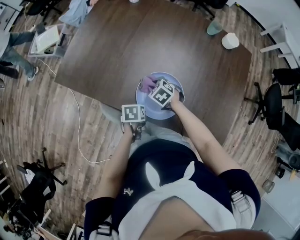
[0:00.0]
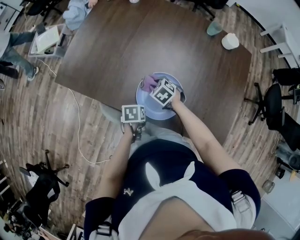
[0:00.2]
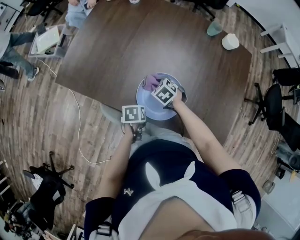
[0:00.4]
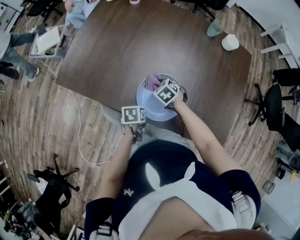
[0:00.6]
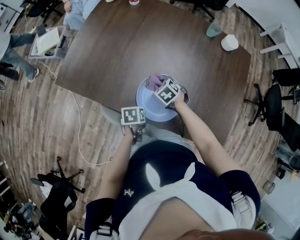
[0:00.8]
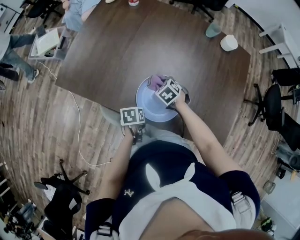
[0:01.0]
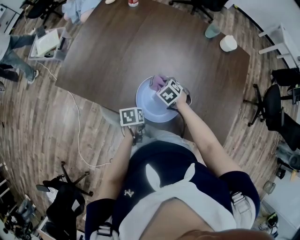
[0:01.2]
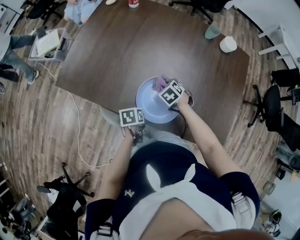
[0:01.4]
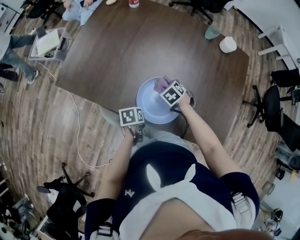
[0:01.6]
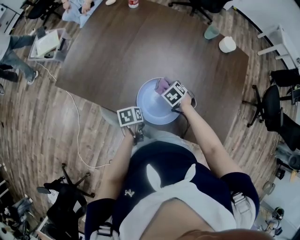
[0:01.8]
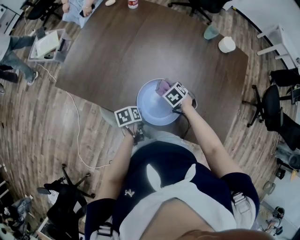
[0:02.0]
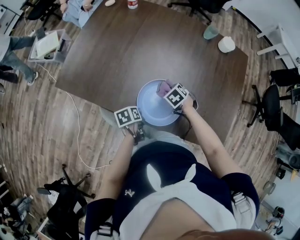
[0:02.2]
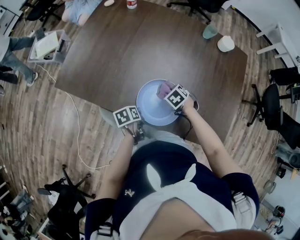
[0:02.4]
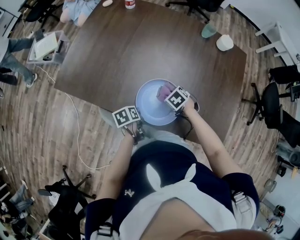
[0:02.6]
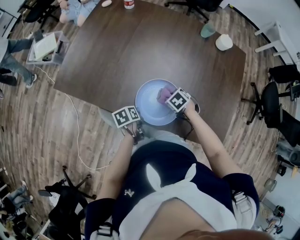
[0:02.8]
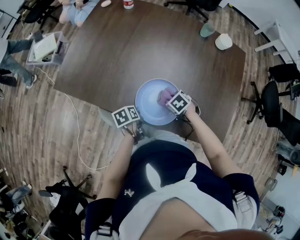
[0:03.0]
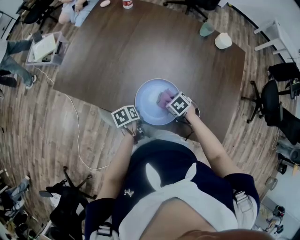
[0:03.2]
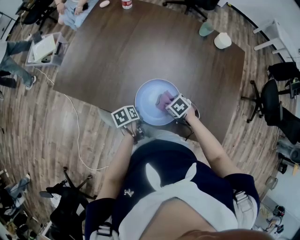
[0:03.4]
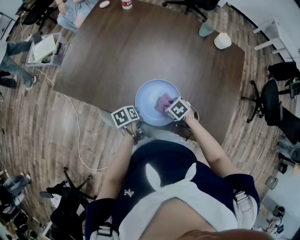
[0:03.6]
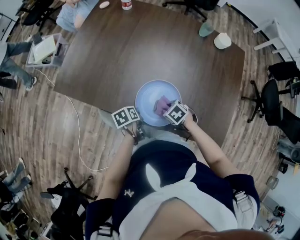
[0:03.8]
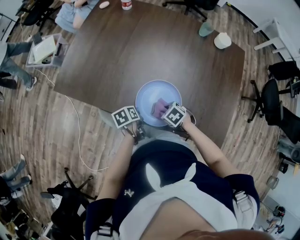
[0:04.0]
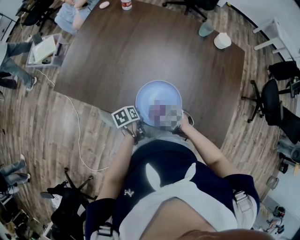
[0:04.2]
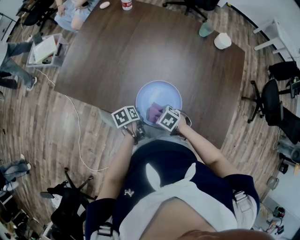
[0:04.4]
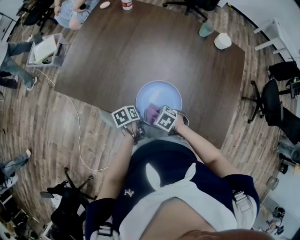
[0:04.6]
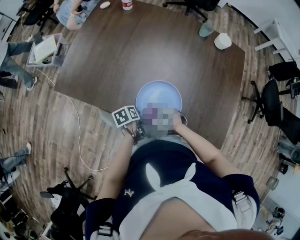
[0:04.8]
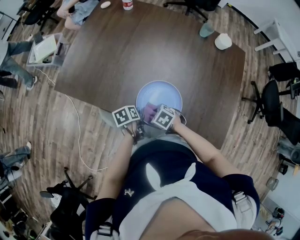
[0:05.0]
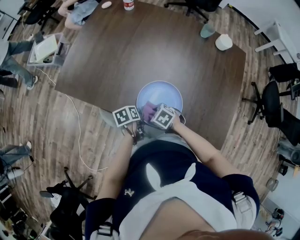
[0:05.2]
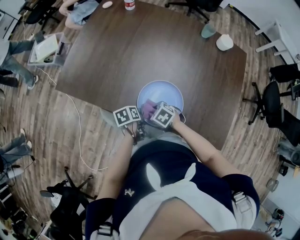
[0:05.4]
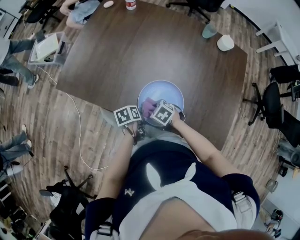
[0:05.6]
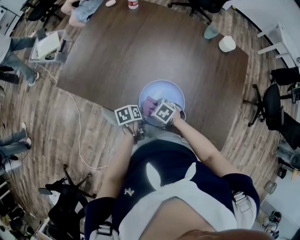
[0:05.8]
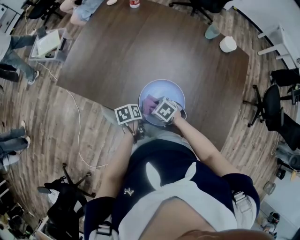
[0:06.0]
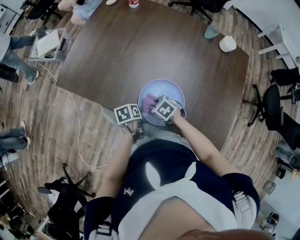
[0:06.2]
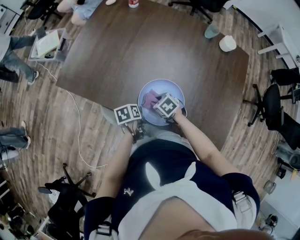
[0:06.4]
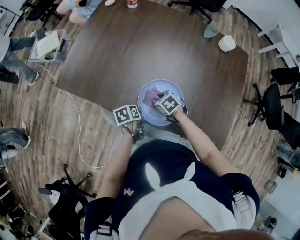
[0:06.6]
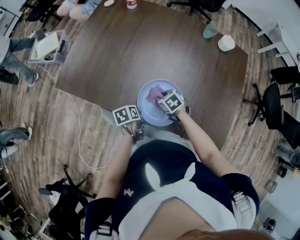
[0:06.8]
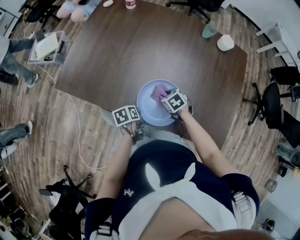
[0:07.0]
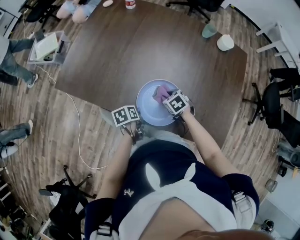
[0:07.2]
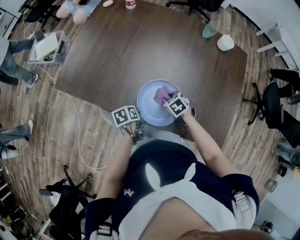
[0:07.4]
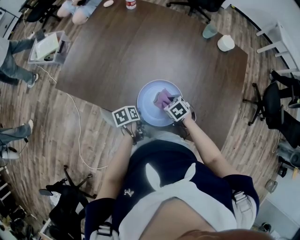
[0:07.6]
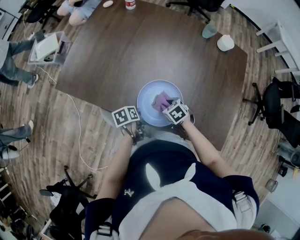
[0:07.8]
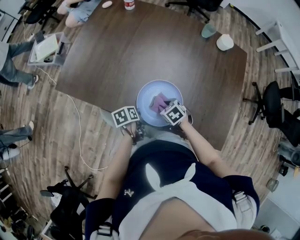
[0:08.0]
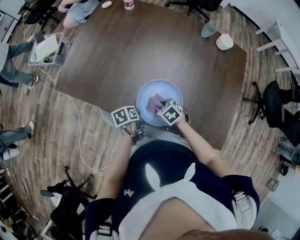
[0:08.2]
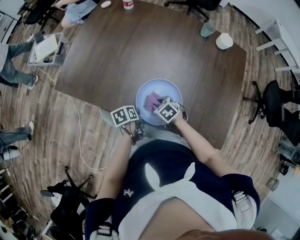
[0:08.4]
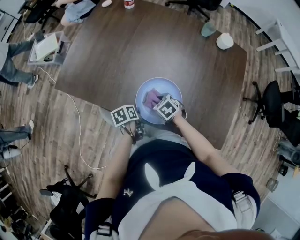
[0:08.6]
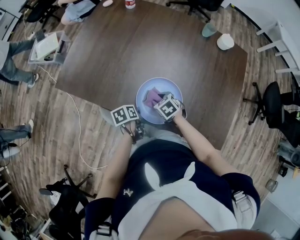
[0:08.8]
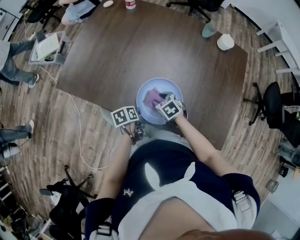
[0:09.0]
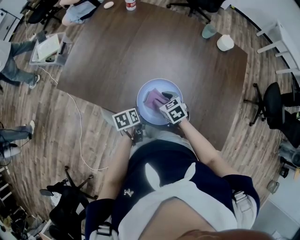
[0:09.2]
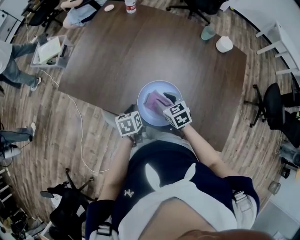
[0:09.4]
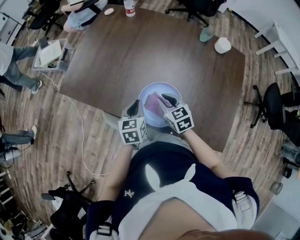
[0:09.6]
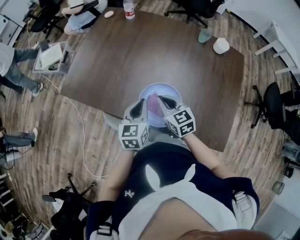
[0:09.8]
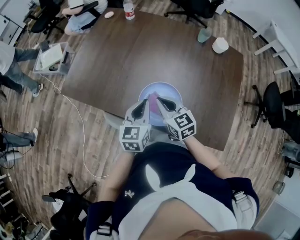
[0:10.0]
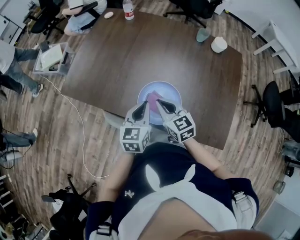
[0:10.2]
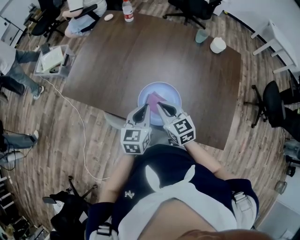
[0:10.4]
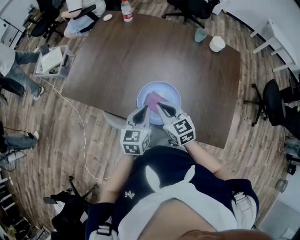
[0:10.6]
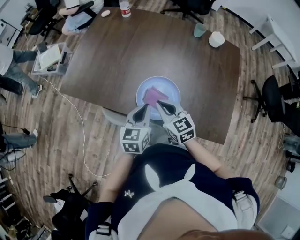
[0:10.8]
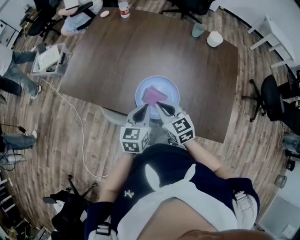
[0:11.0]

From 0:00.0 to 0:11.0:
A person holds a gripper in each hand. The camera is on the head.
From 0:00.0 to 0:01.6: The right gripper shifts roughly 10 cm to the right.
From 0:01.6 to 0:03.2: The right gripper ends up some 10 cm from where it was.
From 0:03.2 to 0:04.8: The right gripper moves roughly 10 cm.
From 0:04.8 to 0:06.2: The right gripper moves roughly 5 cm.
From 0:06.2 to 0:07.8: The right gripper is displaced to the right by approximately 5 cm.
From 0:07.8 to 0:09.4: Both grippers travel together upward, some 5 cm. The right gripper swivels roughly 20 degrees, while the left gripper rotates approximately 30 degrees.
From 0:09.4 to 0:11.0: The right gripper heads upward and backward, covering approximately 15 cm, and closes. Meanwhile the left gripper heads upward, backward and to the right, covering about 15 cm, and changes its angle by some 30 degrees.

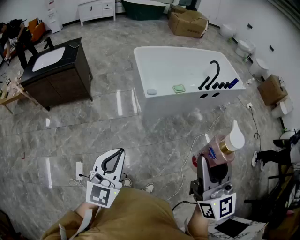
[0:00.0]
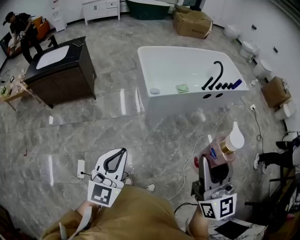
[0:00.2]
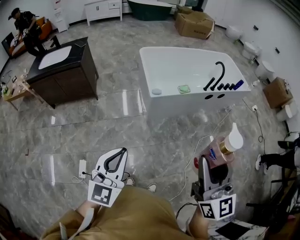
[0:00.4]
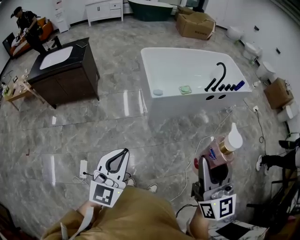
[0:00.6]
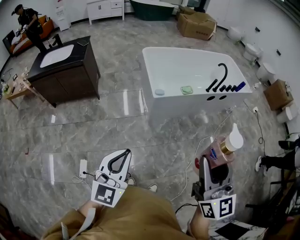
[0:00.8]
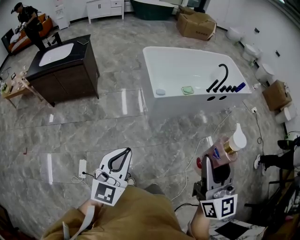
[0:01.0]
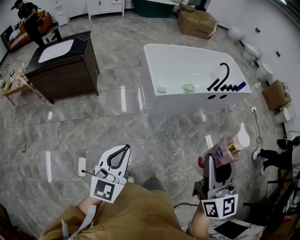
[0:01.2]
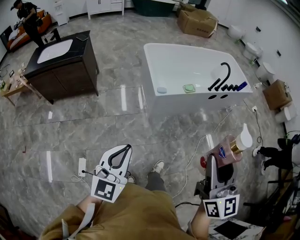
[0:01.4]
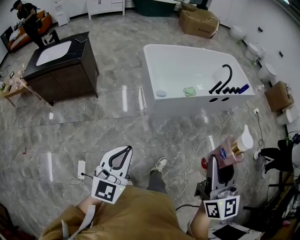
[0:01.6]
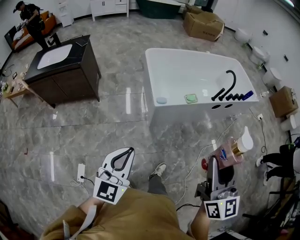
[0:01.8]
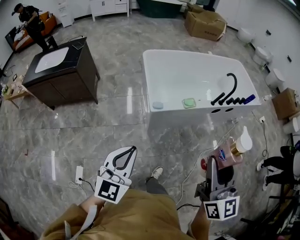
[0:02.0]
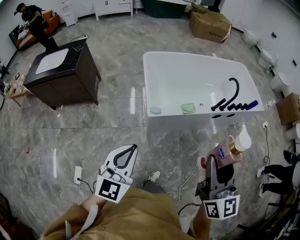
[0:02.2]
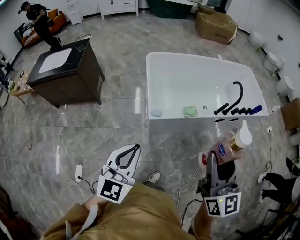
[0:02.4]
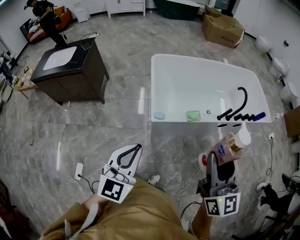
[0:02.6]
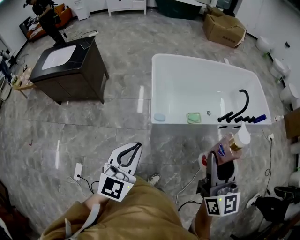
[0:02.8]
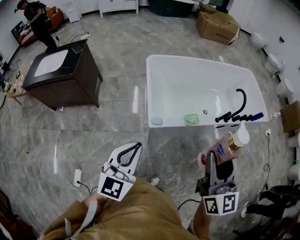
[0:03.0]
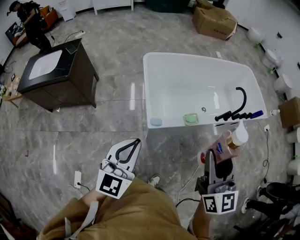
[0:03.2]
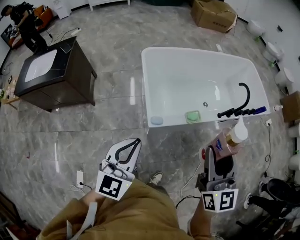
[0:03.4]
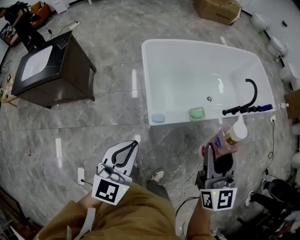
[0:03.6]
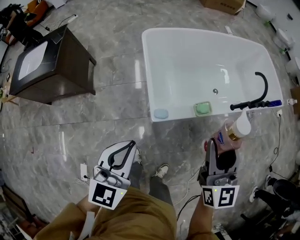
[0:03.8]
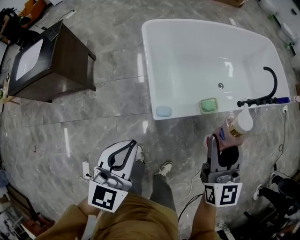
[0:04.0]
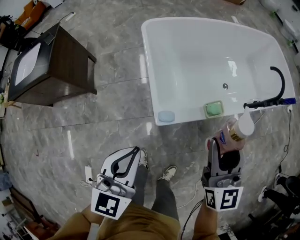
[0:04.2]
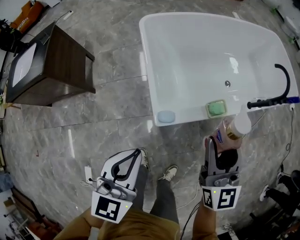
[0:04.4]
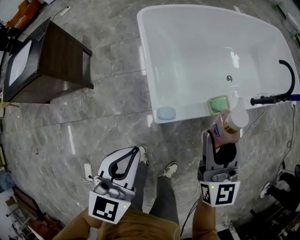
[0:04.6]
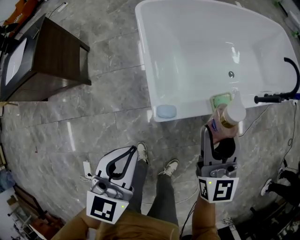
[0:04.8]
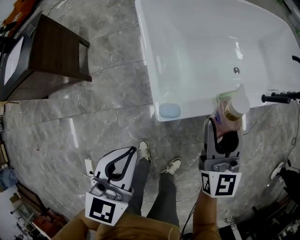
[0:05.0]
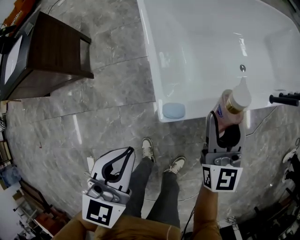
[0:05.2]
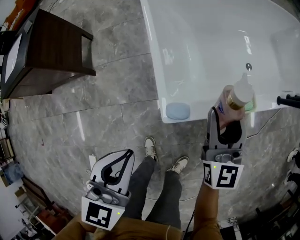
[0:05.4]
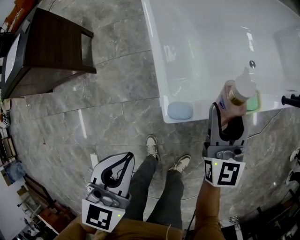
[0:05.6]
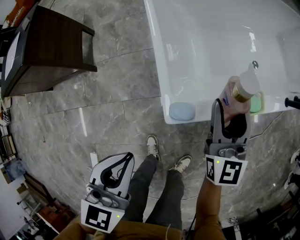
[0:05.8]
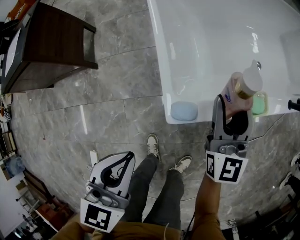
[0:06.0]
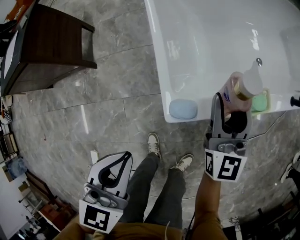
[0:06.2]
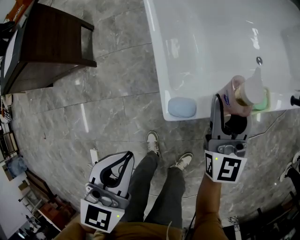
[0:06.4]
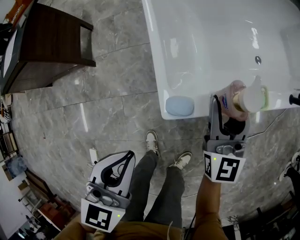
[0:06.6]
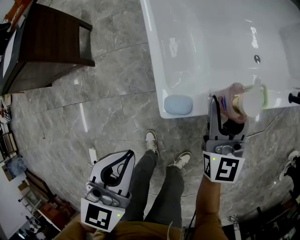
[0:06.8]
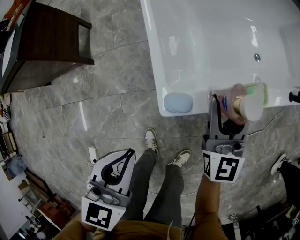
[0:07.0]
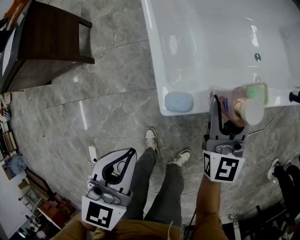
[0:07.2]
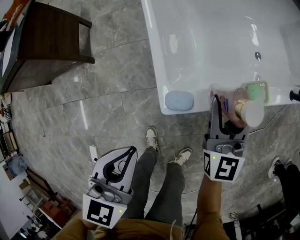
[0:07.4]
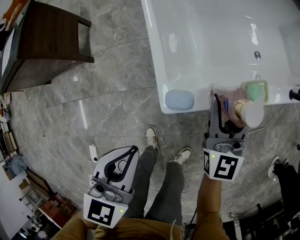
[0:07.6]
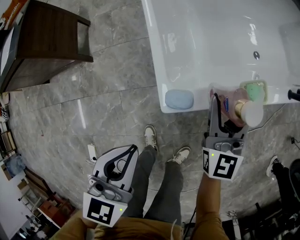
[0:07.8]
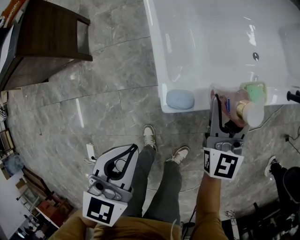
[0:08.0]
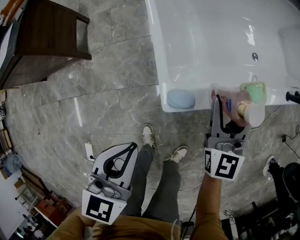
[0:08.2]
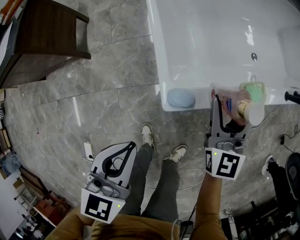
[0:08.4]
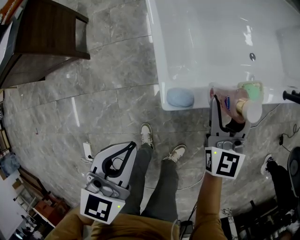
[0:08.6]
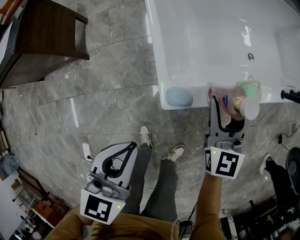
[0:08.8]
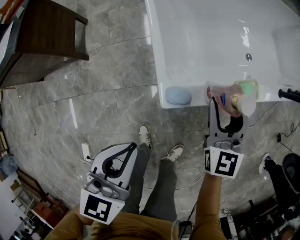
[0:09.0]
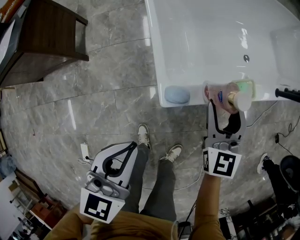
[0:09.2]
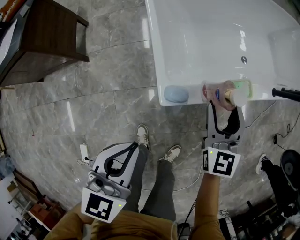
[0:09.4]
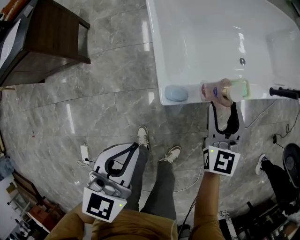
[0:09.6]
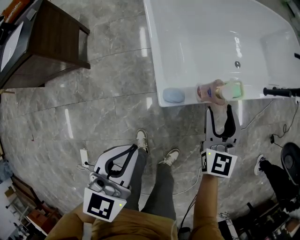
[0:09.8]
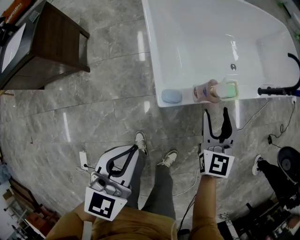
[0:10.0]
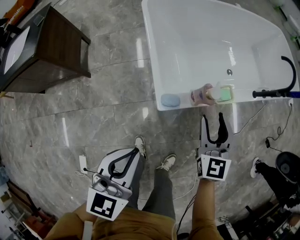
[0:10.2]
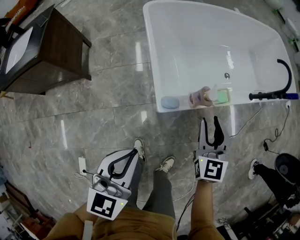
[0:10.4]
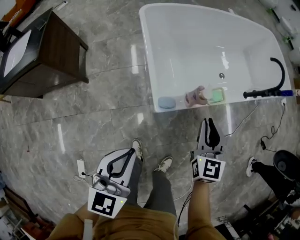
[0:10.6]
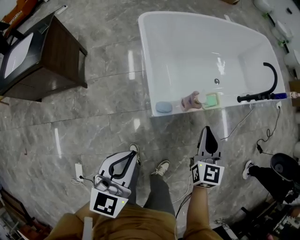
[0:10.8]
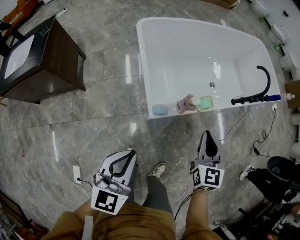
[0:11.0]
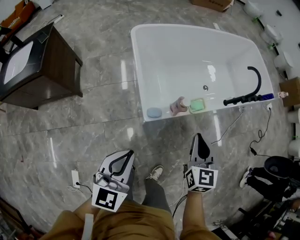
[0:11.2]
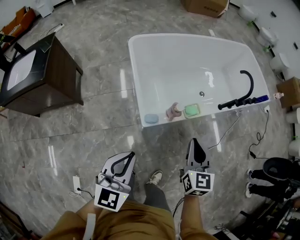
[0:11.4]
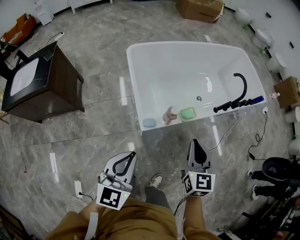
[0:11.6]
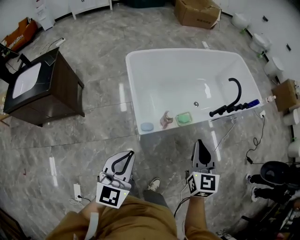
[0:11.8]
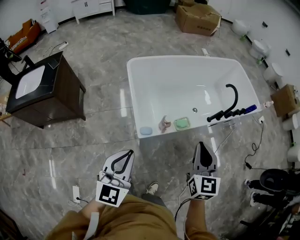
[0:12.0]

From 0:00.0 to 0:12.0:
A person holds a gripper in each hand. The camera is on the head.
From 0:00.0 to 0:01.6: Both grippers travel together forward, approximately 5 cm.
From 0:01.6 to 0:03.0: The grippers both shift forward by about 30 cm.
From 0:03.0 to 0:04.4: The two grippers go about 25 cm downward and forward.
From 0:04.4 to 0:06.0: The left gripper travels downward by approximately 15 cm. The right gripper is displaced downward and forward by about 25 cm.
From 0:06.0 to 0:09.0: The grippers stay close to where they were, moving slightly.
From 0:09.0 to 0:10.4: The two grippers go roughly 10 cm upward and backward. The right gripper closes.
From 0:10.4 to 0:12.0: The grippers both shift upward by roughly 20 cm. The right gripper closes its fingers.

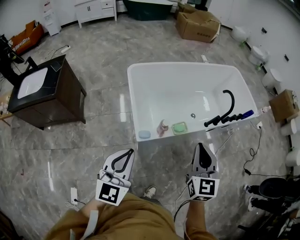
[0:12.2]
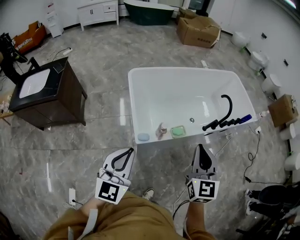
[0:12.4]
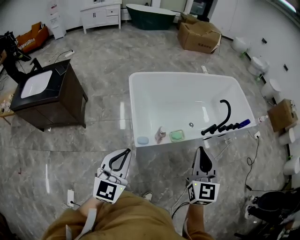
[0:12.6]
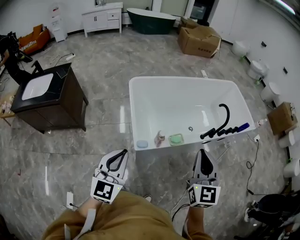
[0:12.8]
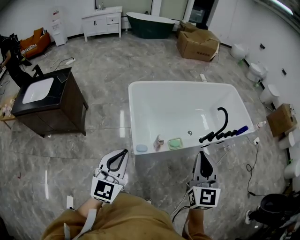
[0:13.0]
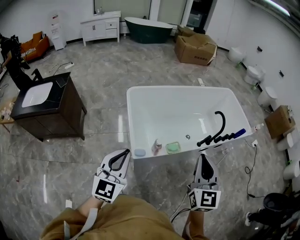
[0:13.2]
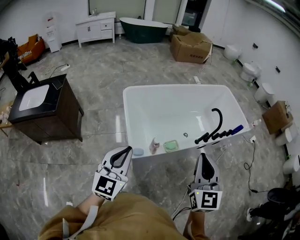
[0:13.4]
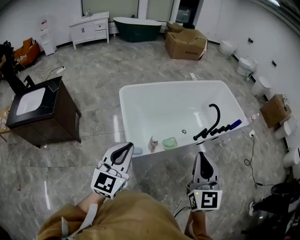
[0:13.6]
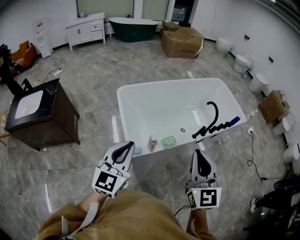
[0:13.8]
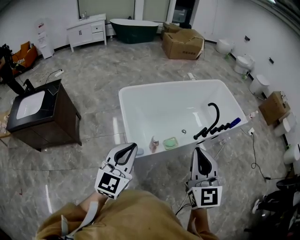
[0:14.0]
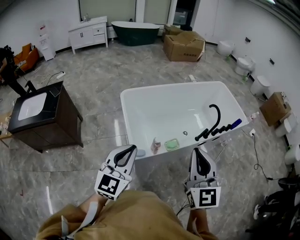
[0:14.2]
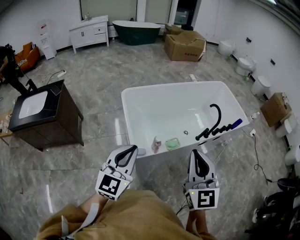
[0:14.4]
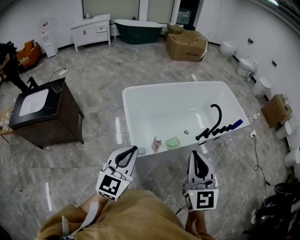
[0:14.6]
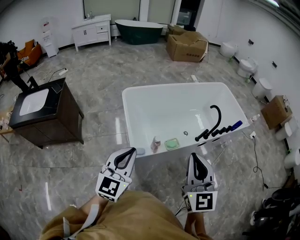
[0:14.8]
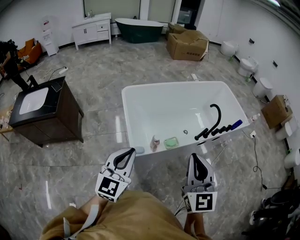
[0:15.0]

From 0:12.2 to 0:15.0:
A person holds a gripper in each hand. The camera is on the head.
From 0:12.2 to 0:13.6: The two grippers go roughly 10 cm upward.
From 0:13.6 to 0:15.0: There are only small adjustments of the grippers.
